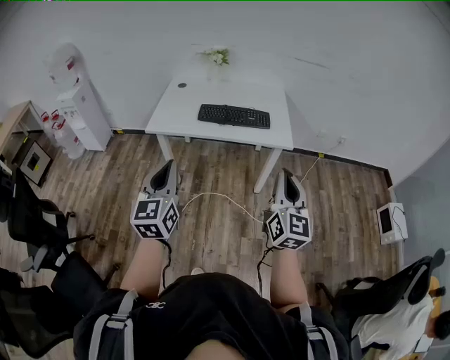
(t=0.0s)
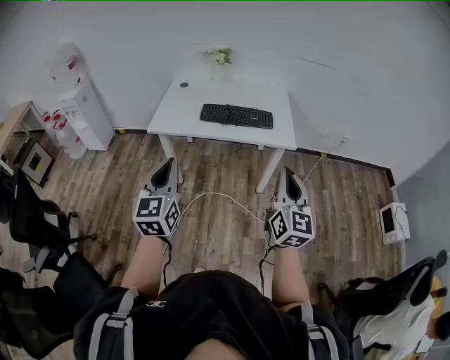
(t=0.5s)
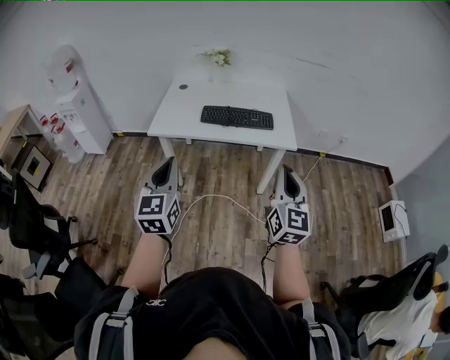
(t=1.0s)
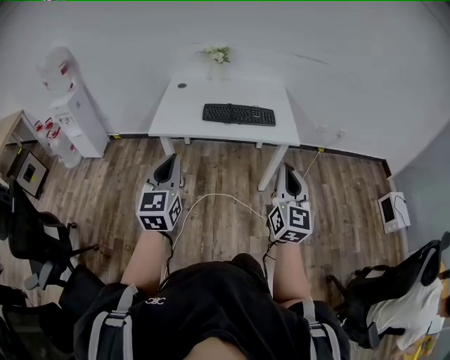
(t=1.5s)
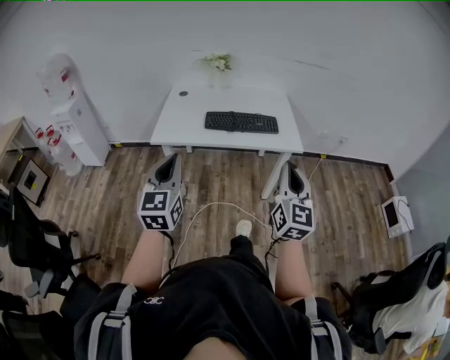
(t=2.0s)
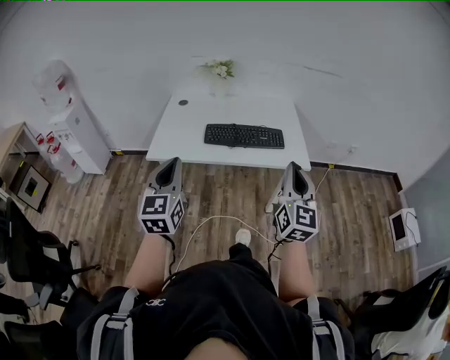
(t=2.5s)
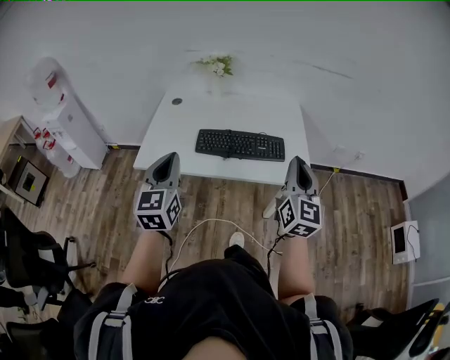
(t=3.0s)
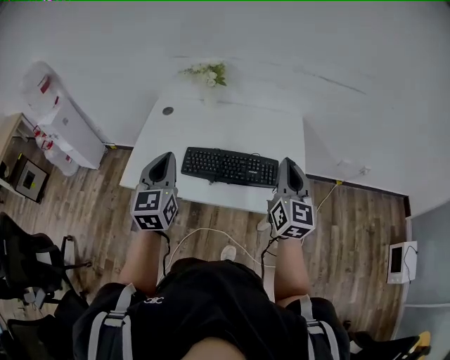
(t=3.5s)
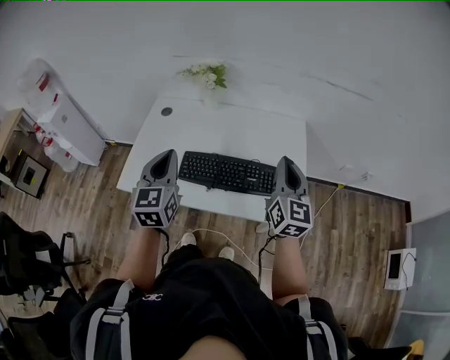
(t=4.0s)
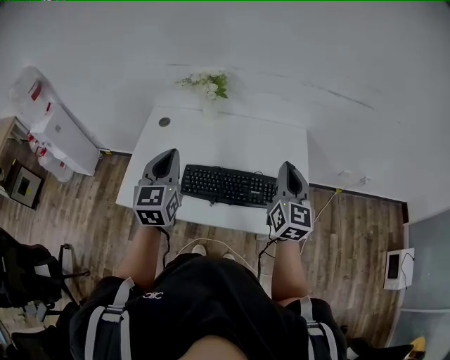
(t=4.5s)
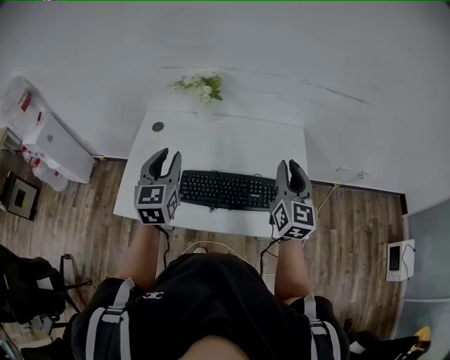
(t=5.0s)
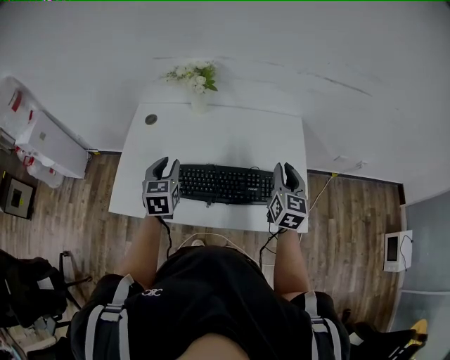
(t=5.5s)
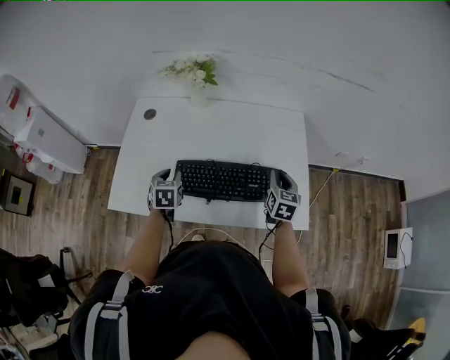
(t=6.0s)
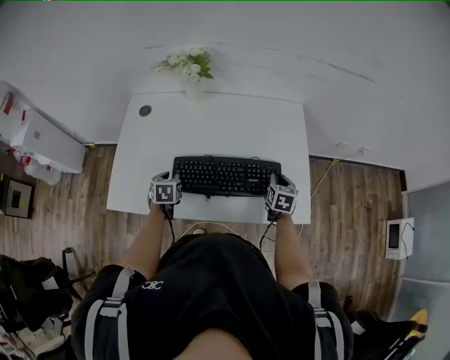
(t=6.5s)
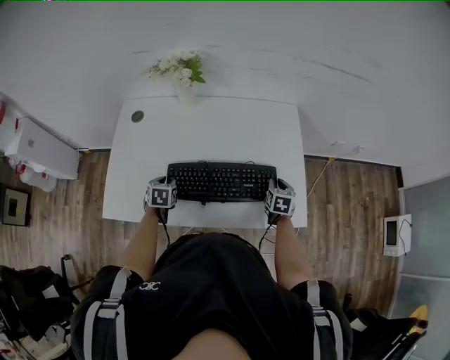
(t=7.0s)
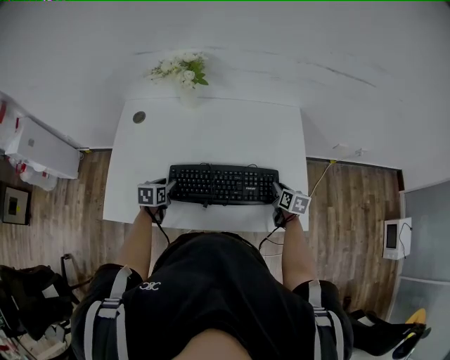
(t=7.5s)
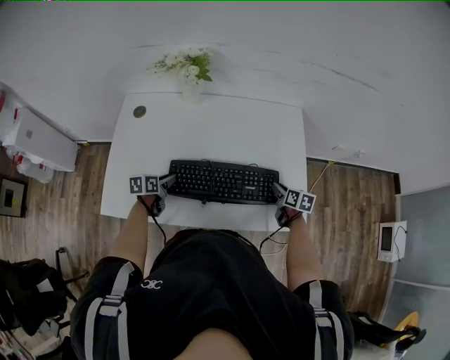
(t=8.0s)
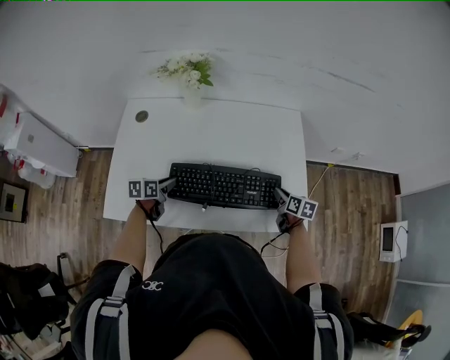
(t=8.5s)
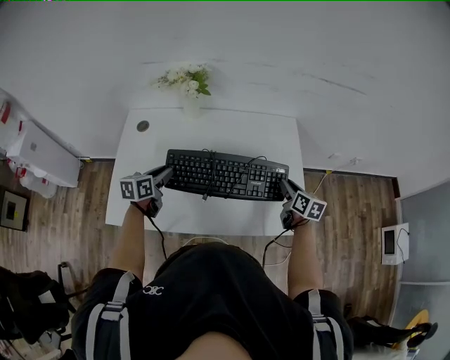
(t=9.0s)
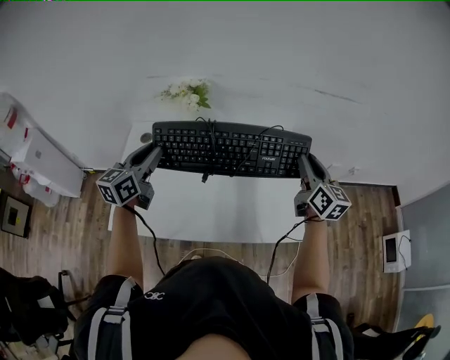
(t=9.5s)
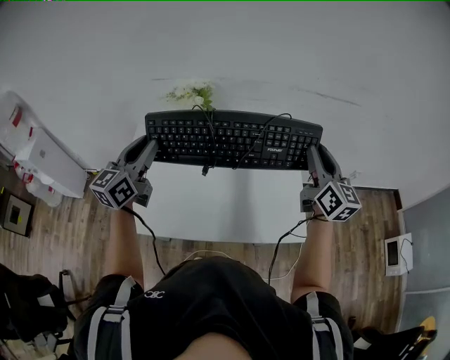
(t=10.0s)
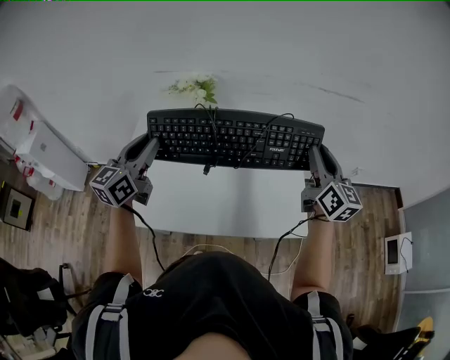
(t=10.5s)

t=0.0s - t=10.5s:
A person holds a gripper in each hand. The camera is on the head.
t=0.0s - t=2.0s: The right gripper heads to the left, covering some 5 cm, while the left gripper heads to the left and forward, covering some 10 cm.
t=2.0s - t=4.0s: The pair of grippers is taken forward, approximately 50 cm.
t=4.0s - t=6.5s: Both grippers move downward, some 35 cm. The right gripper tips its fingers downward by roughly 40 degrees, and opens, while the left gripper tips its fingers downward by roughly 40 degrees, and opens up.
t=6.5s - t=8.5s: The right gripper changes its angle by approximately 30 degrees, while the left gripper turns by about 30 degrees.
t=8.5s - t=10.5s: Both grippers move upward, approximately 40 cm. The left gripper angles its fingers upward, by some 40 degrees; the right gripper tilts its fingers approximately 40 degrees upward.

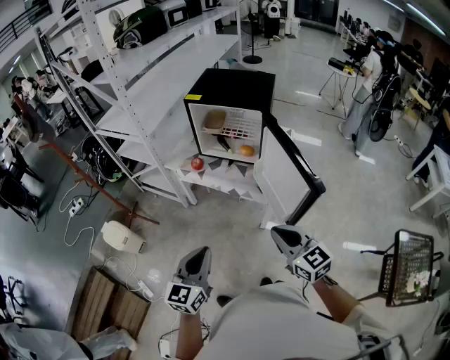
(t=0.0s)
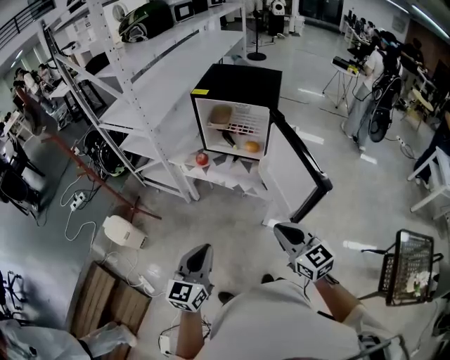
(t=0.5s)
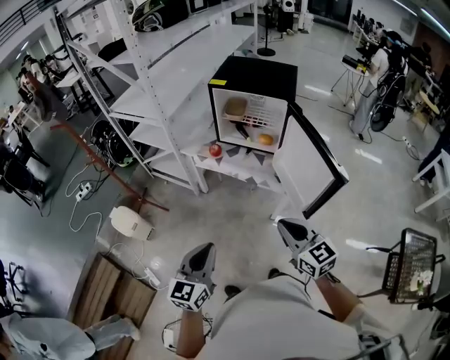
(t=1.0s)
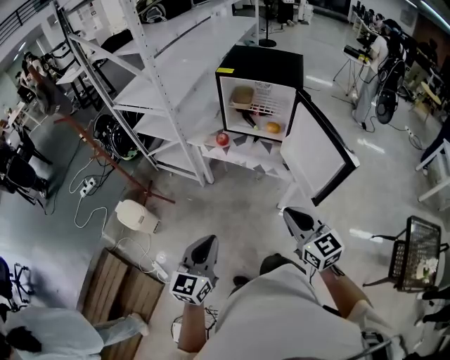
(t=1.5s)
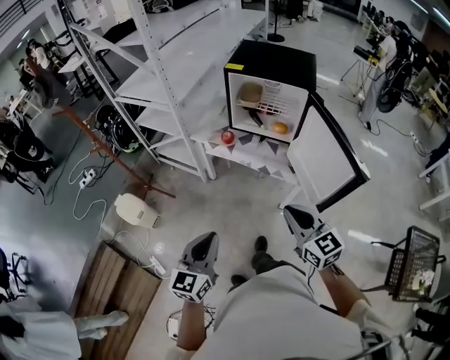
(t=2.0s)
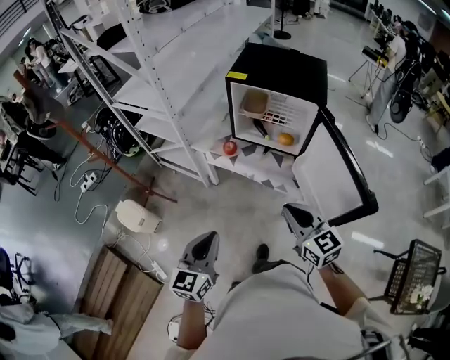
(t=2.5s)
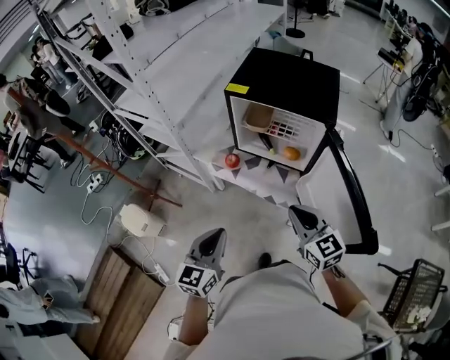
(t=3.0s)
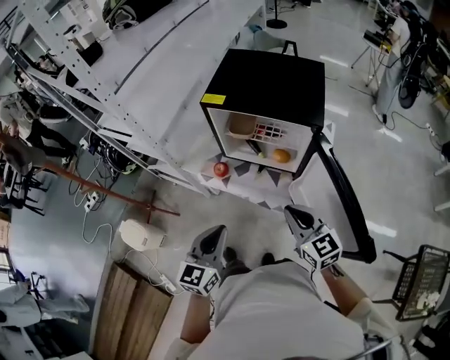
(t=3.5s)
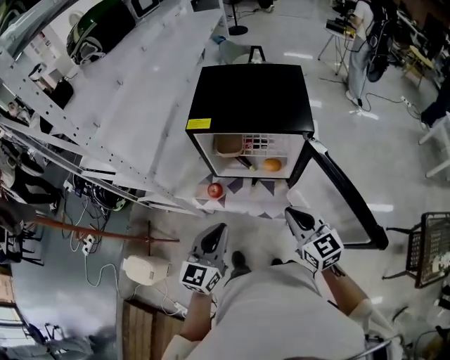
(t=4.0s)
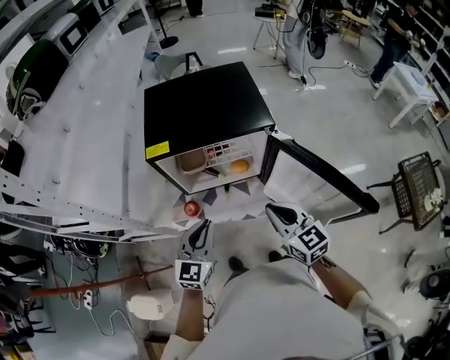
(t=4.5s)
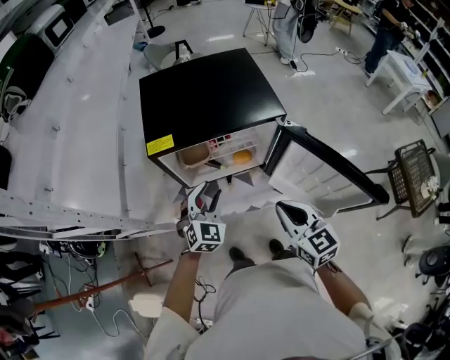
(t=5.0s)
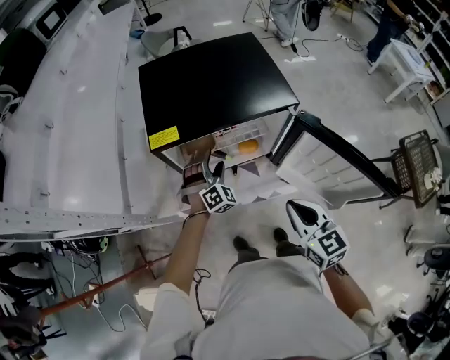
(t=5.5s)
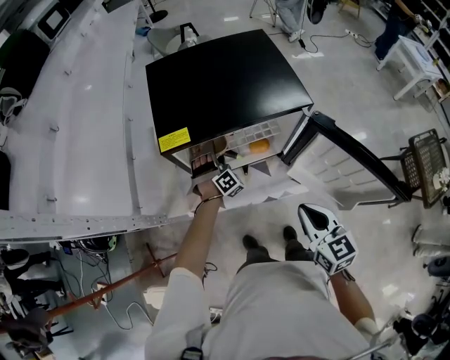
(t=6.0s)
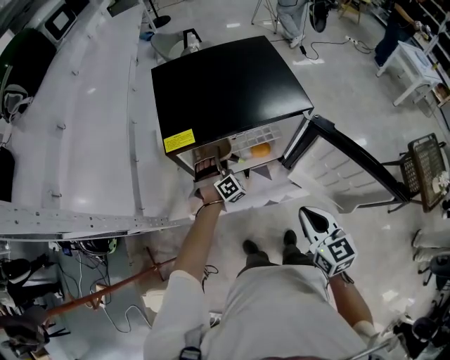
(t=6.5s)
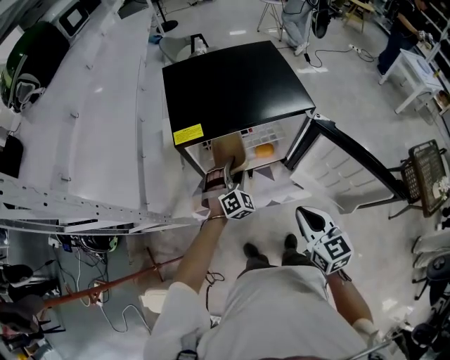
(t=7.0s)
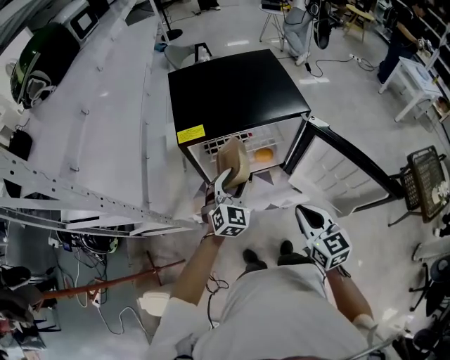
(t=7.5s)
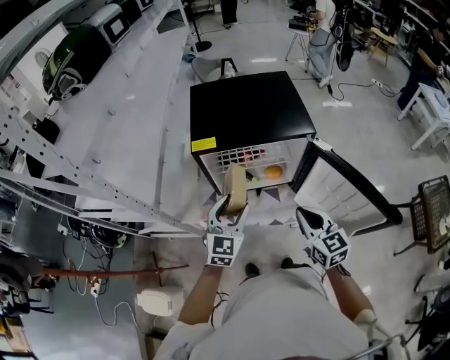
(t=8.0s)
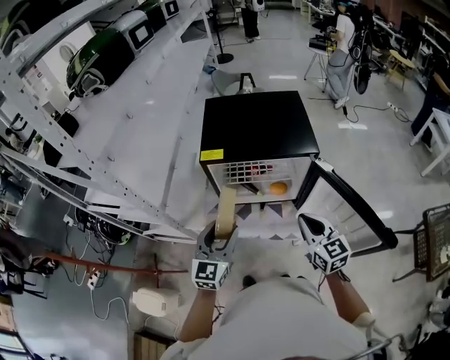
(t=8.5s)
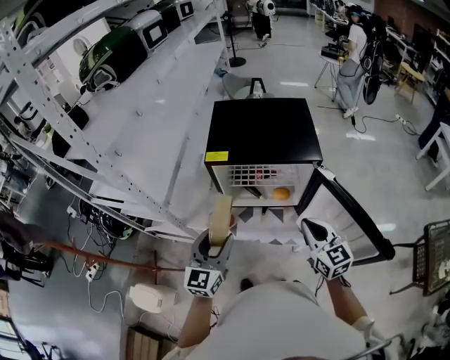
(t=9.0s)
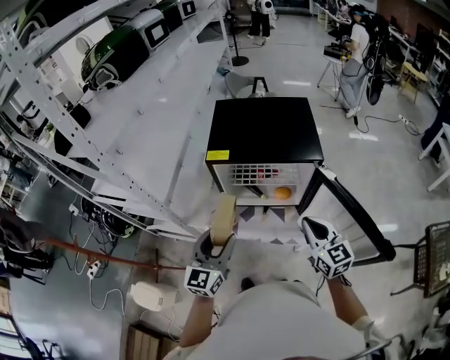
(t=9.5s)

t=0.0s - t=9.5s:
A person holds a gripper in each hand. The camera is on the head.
t=0.0s - t=2.0s: The grippers both shift to the left by approximately 10 cm.
t=2.0s - t=4.0s: Both grippers move forward, about 30 cm.
t=4.0s - t=5.5s: The right gripper rotates roughly 30 degrees, while the left gripper shifts approximately 35 cm forward and downward, twists approximately 60 degrees clockwise, seen from behind, and opens up.
t=5.5s - t=7.5s: The left gripper moves backward and upward, roughly 10 cm, and swivels some 30 degrees.
t=7.5s - t=9.5s: The left gripper goes roughly 20 cm backward, upward and to the left, and turns by about 40 degrees. The right gripper moves forward and to the right, about 5 cm.

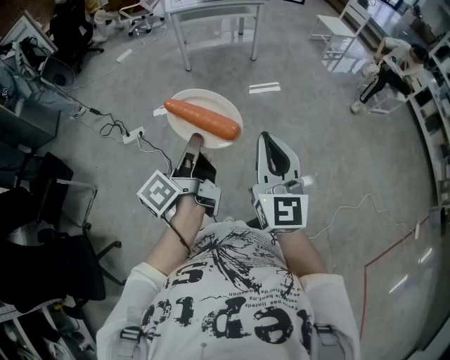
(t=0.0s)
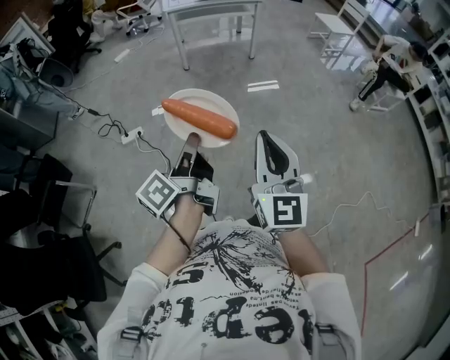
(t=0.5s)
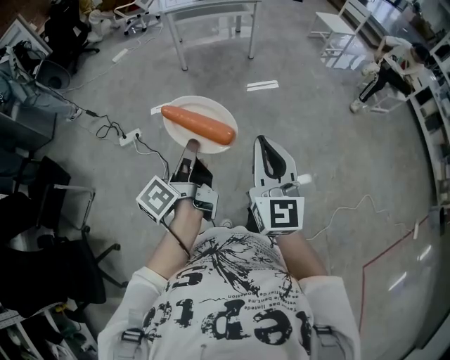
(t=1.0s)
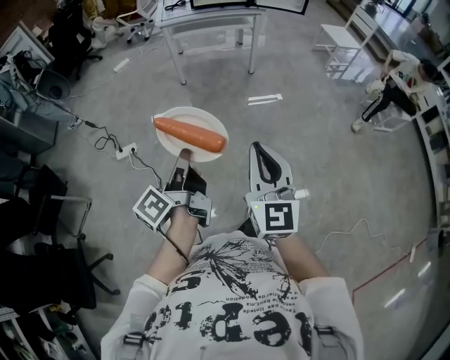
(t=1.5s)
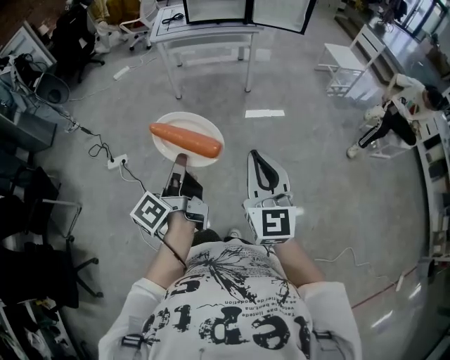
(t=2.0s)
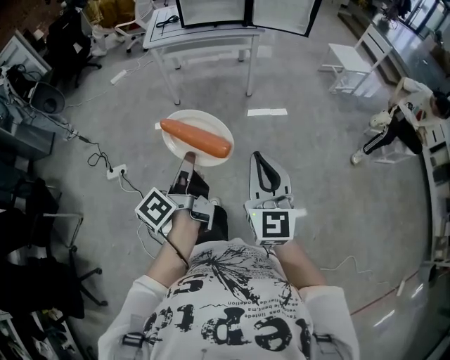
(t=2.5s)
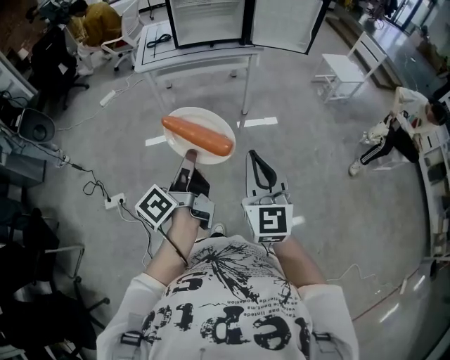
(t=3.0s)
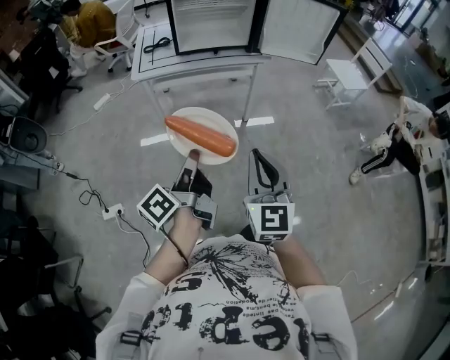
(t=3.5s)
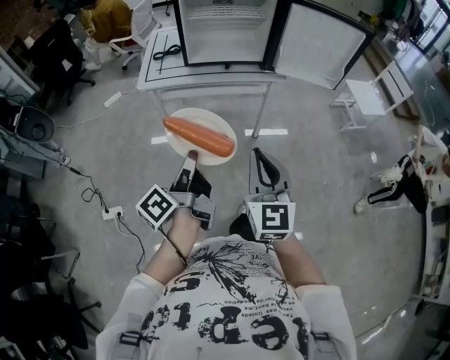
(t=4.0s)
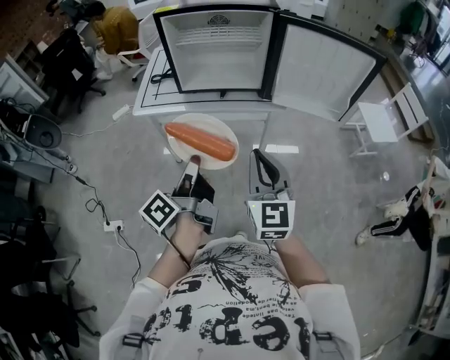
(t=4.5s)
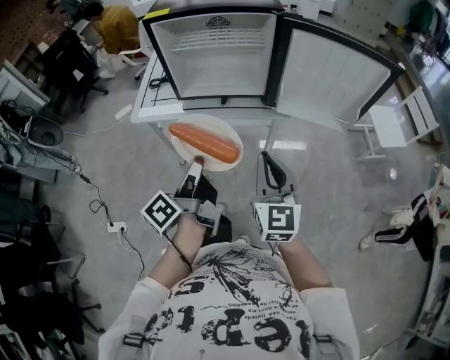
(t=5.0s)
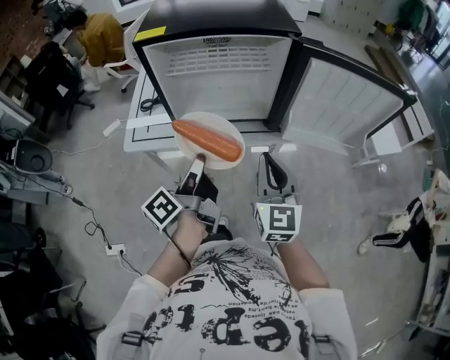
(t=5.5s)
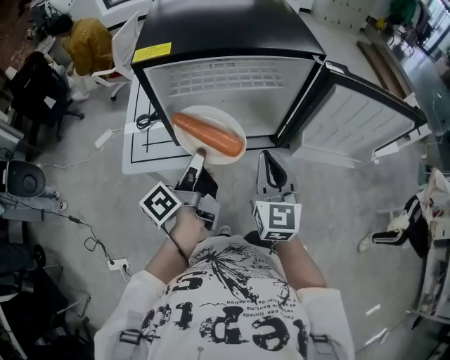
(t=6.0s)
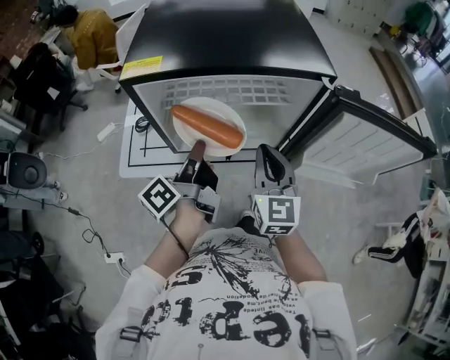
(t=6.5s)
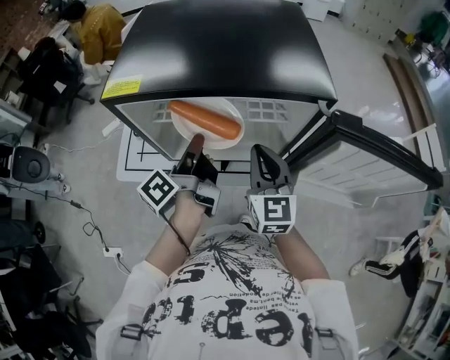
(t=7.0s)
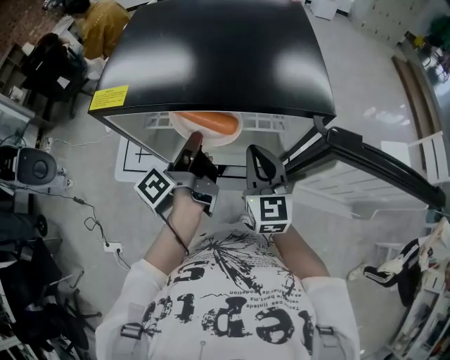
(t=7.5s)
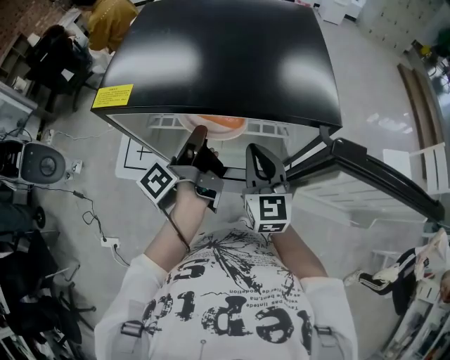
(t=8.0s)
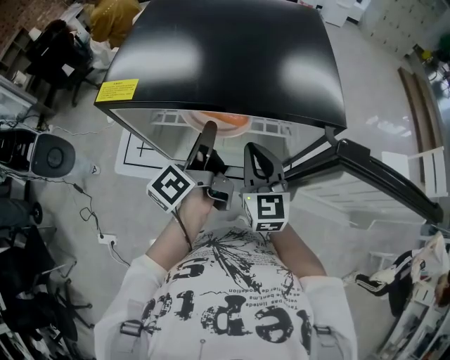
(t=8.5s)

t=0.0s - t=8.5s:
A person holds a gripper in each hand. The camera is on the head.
t=0.0s - t=2.0s: Both grippers travel together forward and to the right, about 30 cm.
t=2.0s - t=4.0s: Both grippers are carried forward, some 50 cm.
t=4.0s - t=6.5s: The pair of grippers is taken forward, some 50 cm.
t=6.5s - t=8.5s: Both grippers travel together forward, roughly 10 cm. The left gripper opens its fingers.
